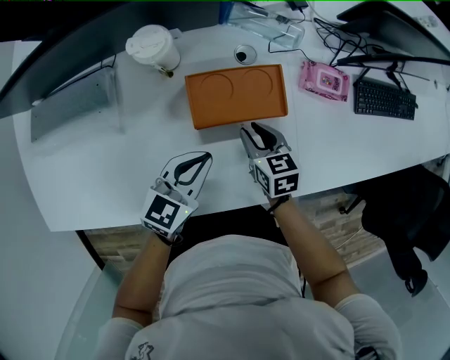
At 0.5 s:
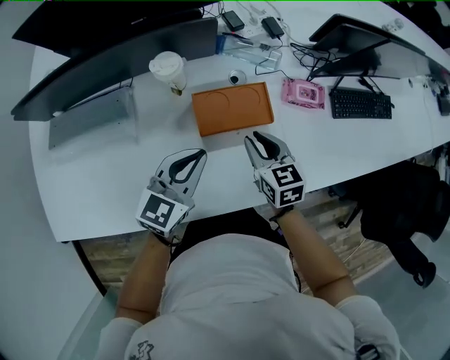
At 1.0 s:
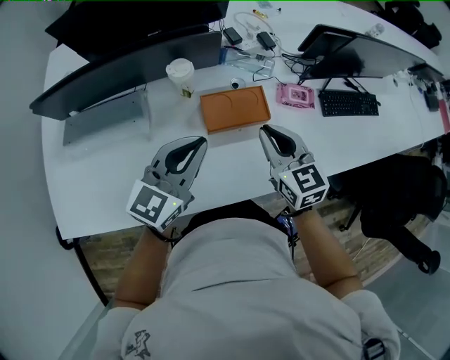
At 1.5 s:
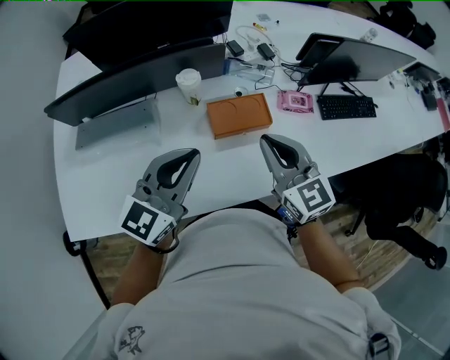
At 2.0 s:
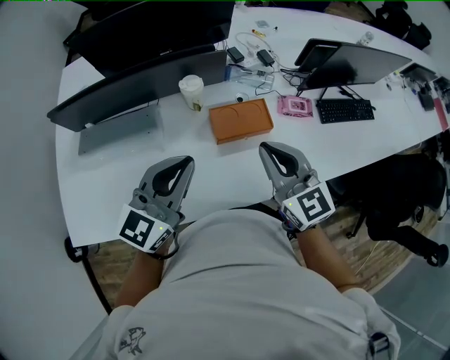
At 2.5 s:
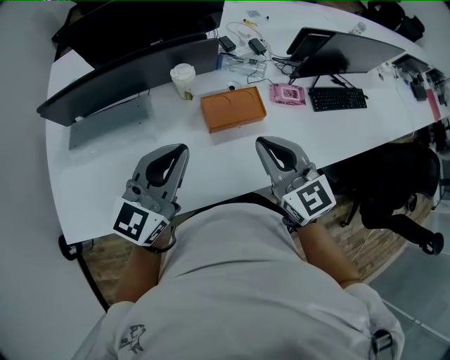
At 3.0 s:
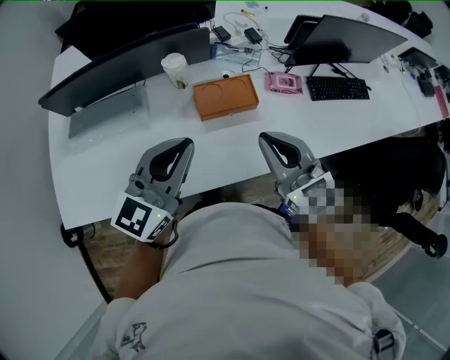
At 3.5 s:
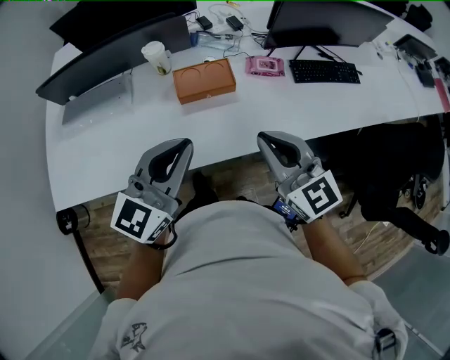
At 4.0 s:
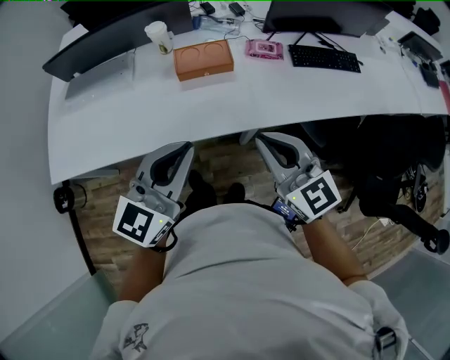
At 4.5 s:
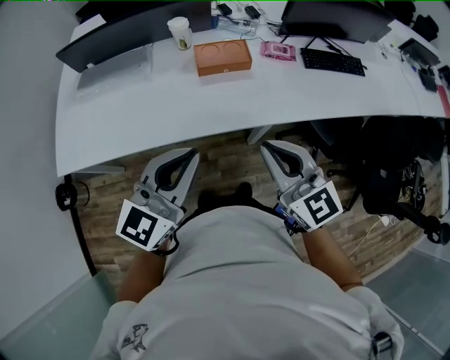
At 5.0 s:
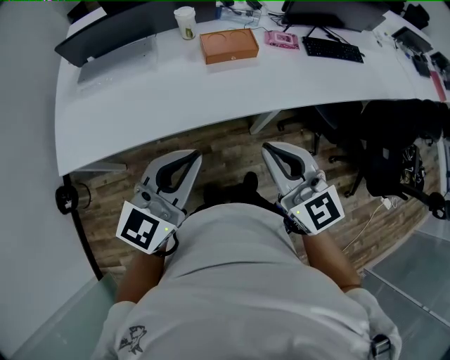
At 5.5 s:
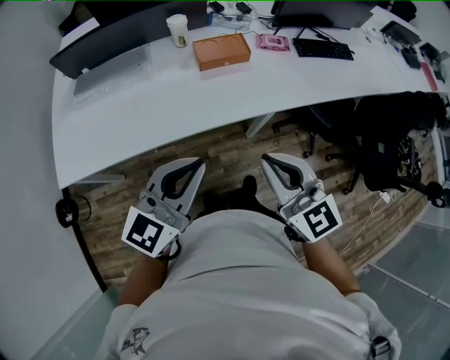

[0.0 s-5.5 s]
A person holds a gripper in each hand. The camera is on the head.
0.0 to 2.0 s: Both grippers travel together upward, approximately 35 cm. The right gripper tilts its fingers some 40 degrees upward, and closes its fingers. The left gripper changes its angle by some 30 degrees.
2.0 to 3.5 s: The two grippers go some 20 cm to the right and backward.
3.5 to 5.5 s: Both grippers travel together backward and to the left, roughly 25 cm.

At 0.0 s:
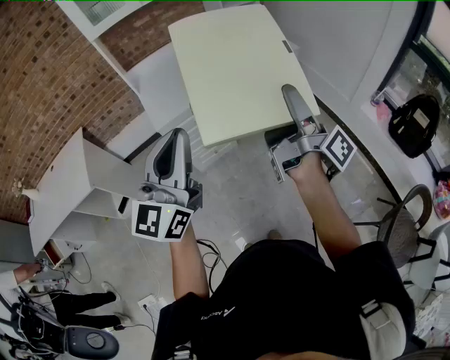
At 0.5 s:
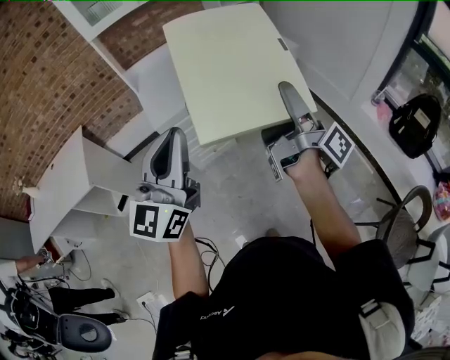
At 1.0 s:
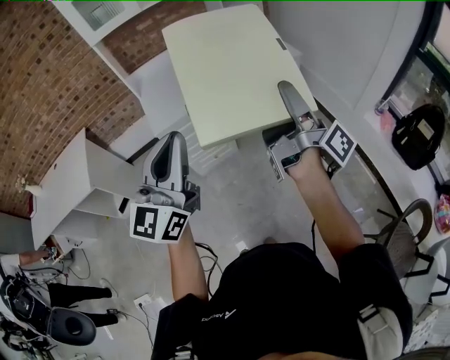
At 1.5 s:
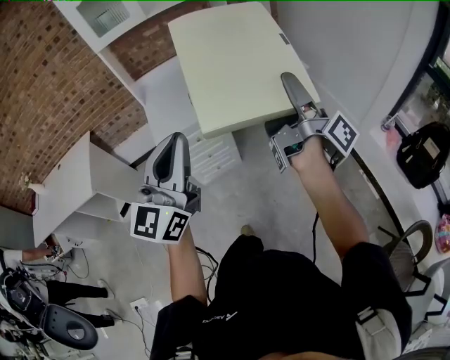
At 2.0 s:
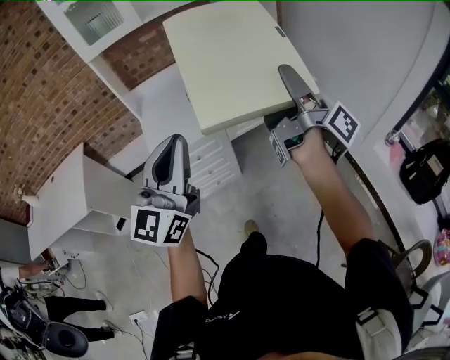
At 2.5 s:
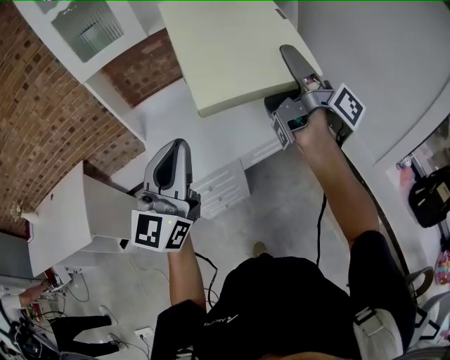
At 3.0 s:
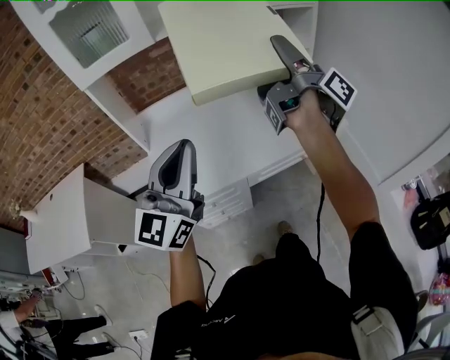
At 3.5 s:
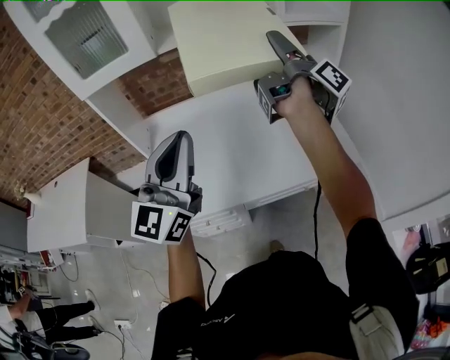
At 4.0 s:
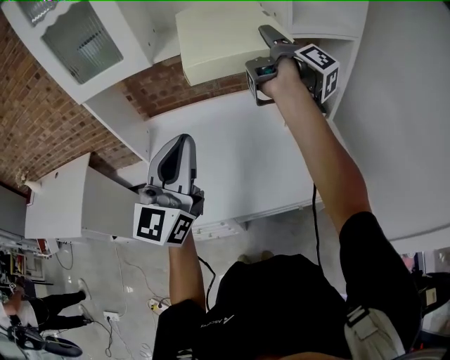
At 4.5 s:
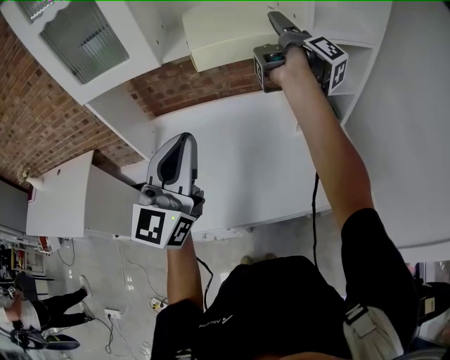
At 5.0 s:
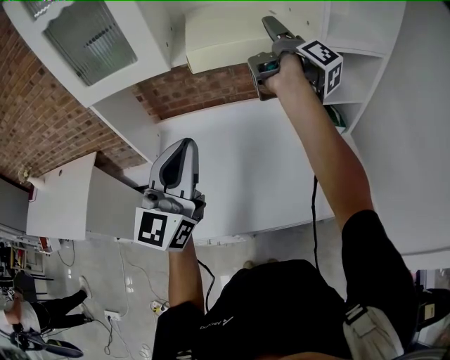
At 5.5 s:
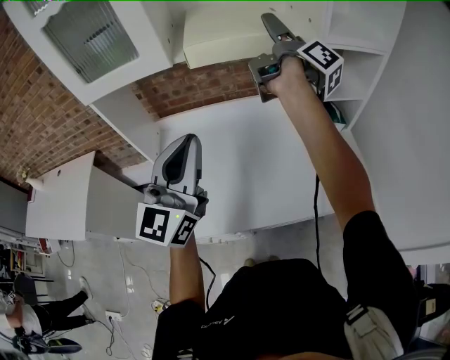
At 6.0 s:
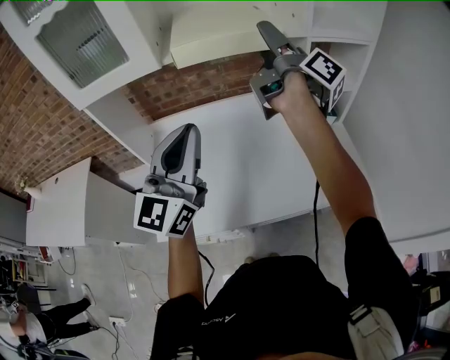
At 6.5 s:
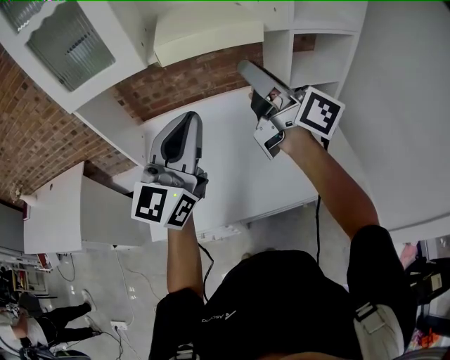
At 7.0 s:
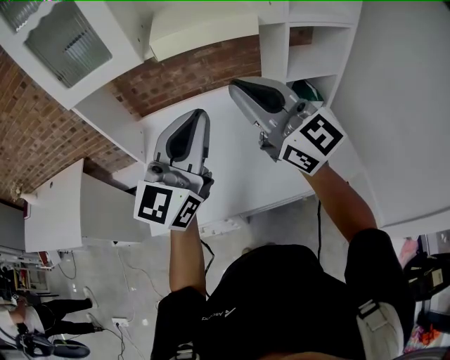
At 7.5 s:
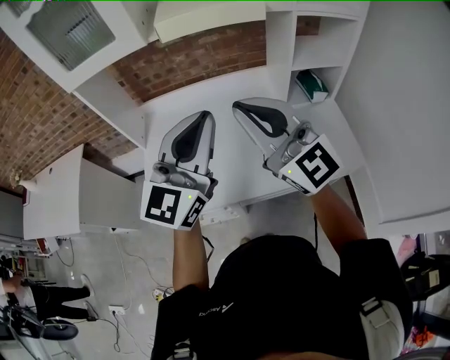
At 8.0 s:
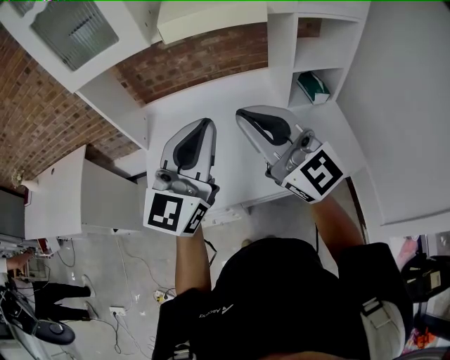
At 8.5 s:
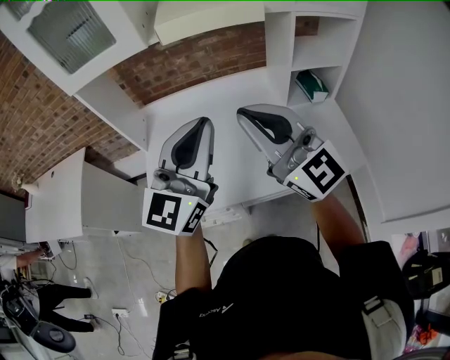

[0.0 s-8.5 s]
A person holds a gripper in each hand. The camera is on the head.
0.0 to 2.0 s: The grippers both shift forward by roughly 25 cm.
2.0 to 4.0 s: The pair of grippers is taken forward, about 50 cm.
4.0 to 6.5 s: The left gripper moves forward, about 5 cm. The right gripper moves backward and to the left, approximately 15 cm, and turns by roughly 50 degrees.
6.5 to 8.5 s: The right gripper travels backward, downward and to the left by about 15 cm, twists roughly 50 degrees counterclockwise, seen from behind, and closes up, while the left gripper heads backward, covering roughly 5 cm.

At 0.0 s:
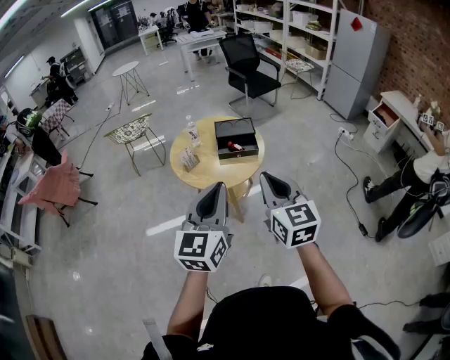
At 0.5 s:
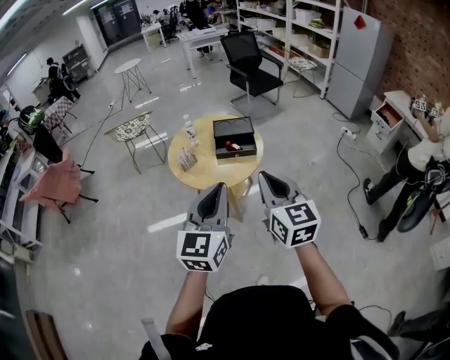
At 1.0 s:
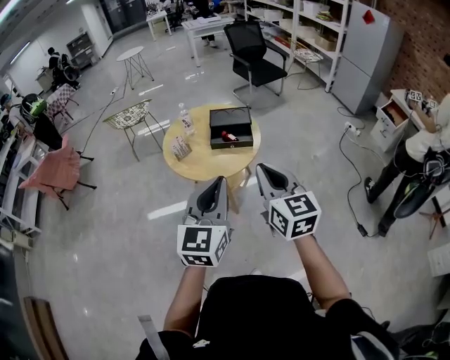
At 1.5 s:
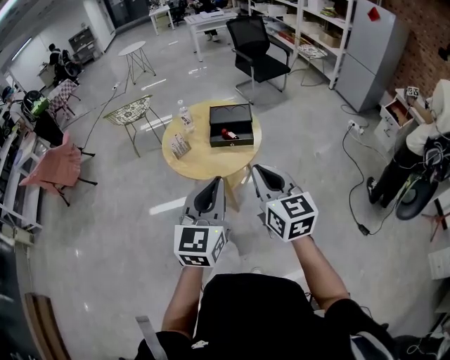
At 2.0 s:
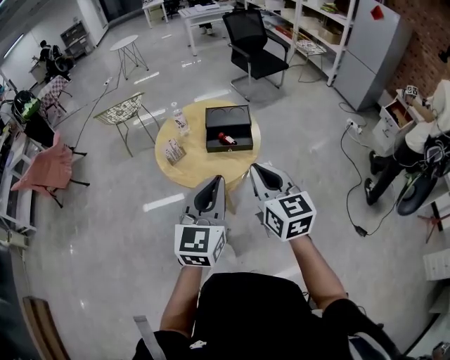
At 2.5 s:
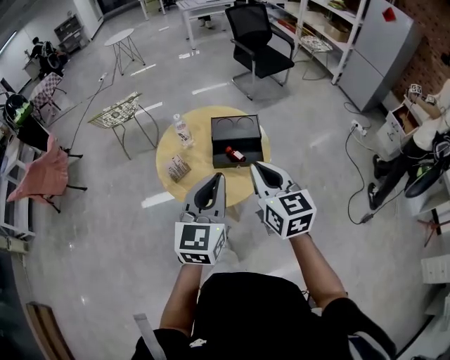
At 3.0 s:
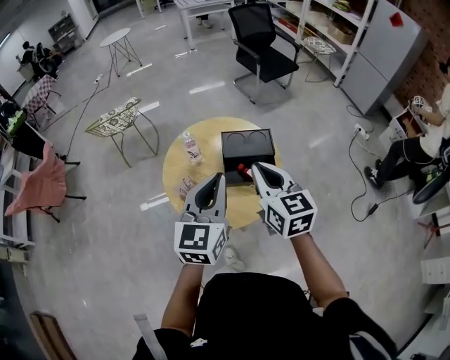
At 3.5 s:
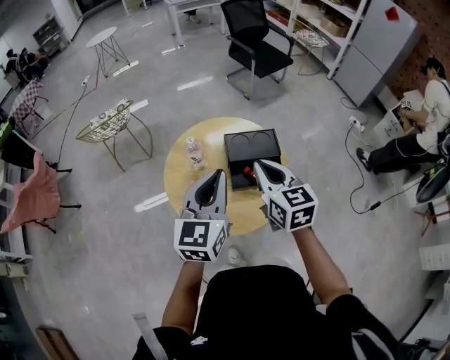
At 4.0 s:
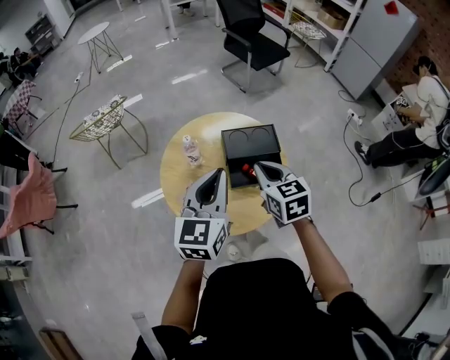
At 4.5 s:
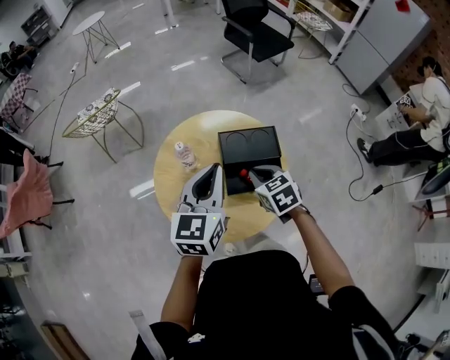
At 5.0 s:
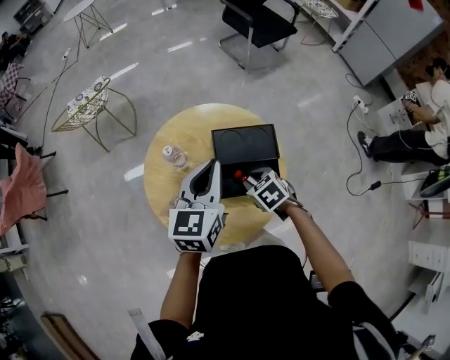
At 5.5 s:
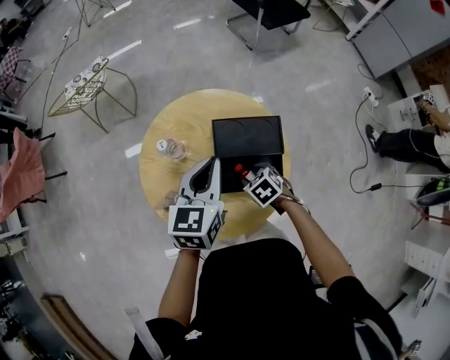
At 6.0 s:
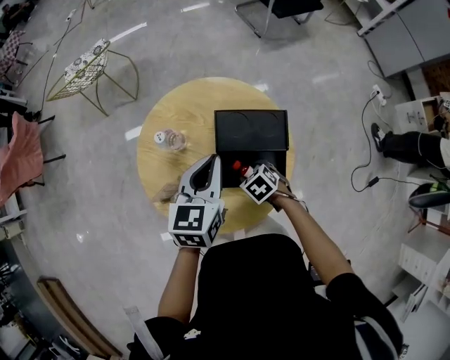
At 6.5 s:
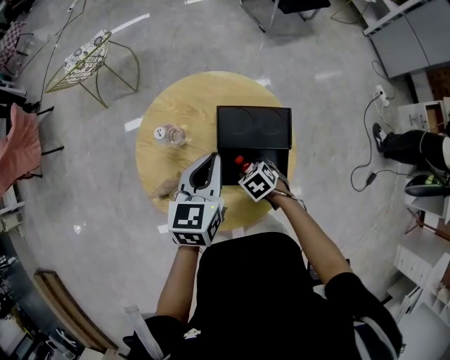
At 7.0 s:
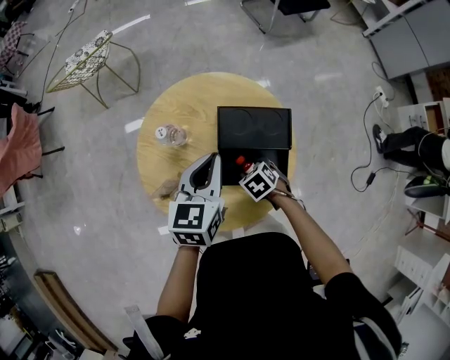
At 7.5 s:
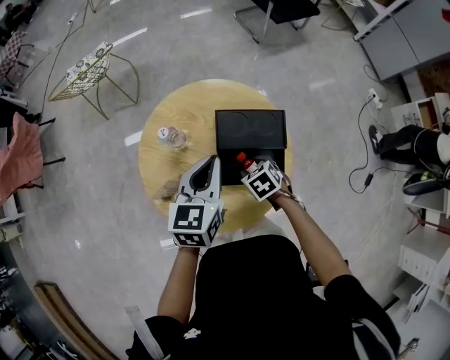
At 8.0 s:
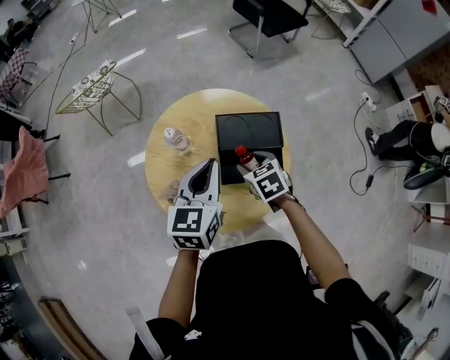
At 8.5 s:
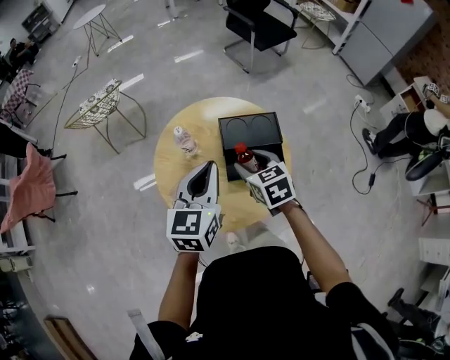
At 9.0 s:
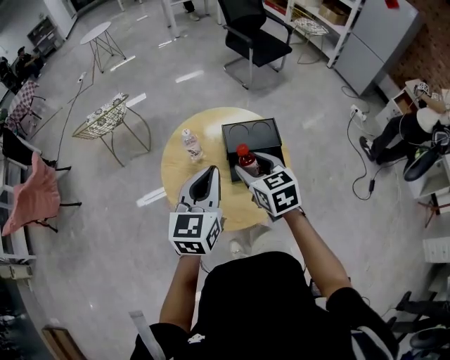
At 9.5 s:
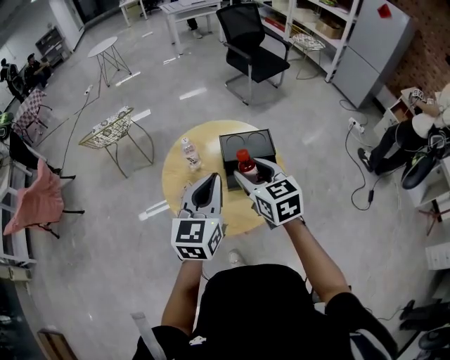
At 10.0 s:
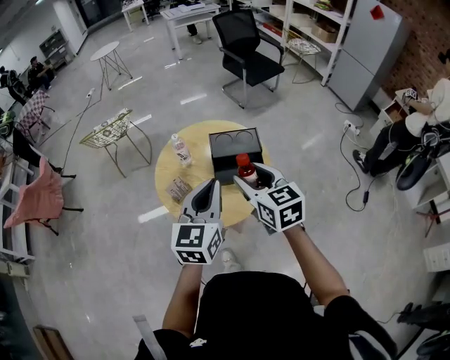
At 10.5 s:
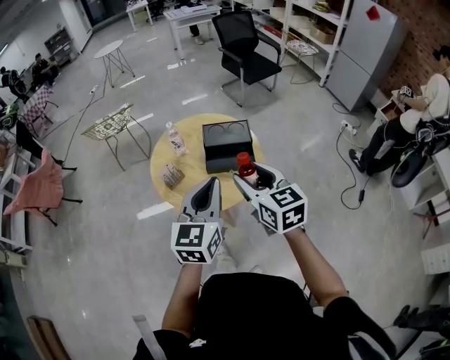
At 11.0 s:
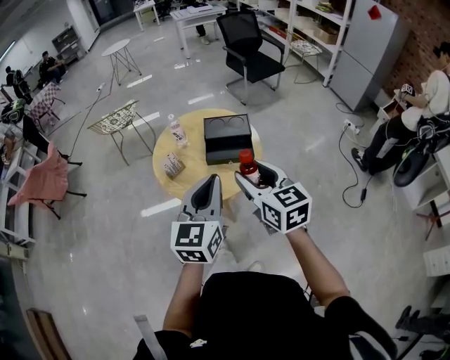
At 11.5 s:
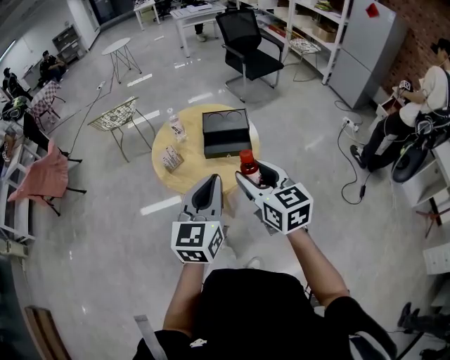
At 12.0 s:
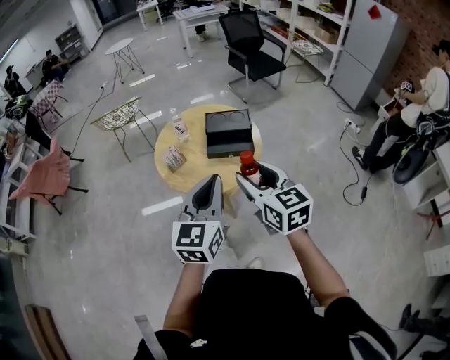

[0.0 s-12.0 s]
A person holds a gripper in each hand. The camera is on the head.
0.0 to 2.0 s: The right gripper goes approximately 15 cm forward and downward. Meanwhile the left gripper is displaced forward, to the right and downward by approximately 15 cm.
2.0 to 4.0 s: The right gripper heads forward, covering some 35 cm, and turns by some 20 degrees. The left gripper goes some 35 cm forward and to the left.
4.0 to 6.0 s: The left gripper ends up some 20 cm from where it was, and turns by roughly 20 degrees, while the right gripper is displaced downward by about 30 cm, points its fingers some 40 degrees further downward, and opens.
6.0 to 8.0 s: The left gripper ends up some 10 cm from where it was. Meanwhile the right gripper heads upward, covering roughly 15 cm, and swivels about 20 degrees.
8.0 to 10.0 s: The right gripper is displaced upward and backward by roughly 30 cm, and angles its fingers upward, by roughly 40 degrees; the left gripper heads backward and upward, covering approximately 25 cm.
10.0 to 12.0 s: The two grippers go approximately 20 cm backward.
